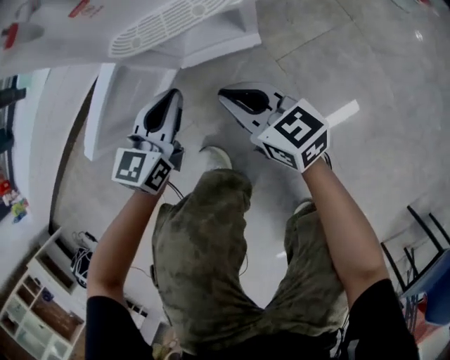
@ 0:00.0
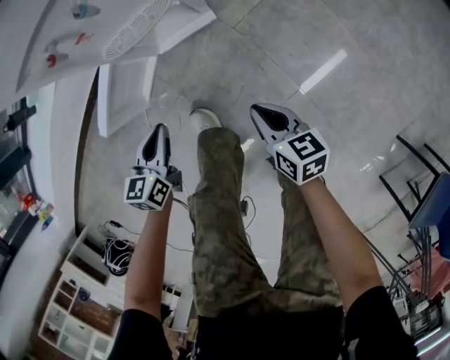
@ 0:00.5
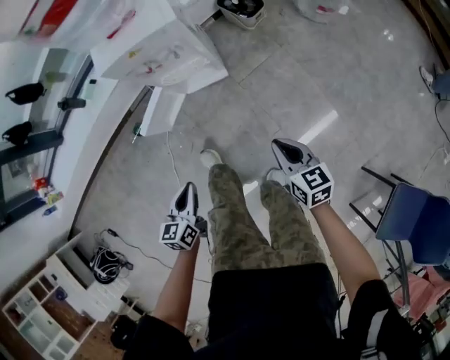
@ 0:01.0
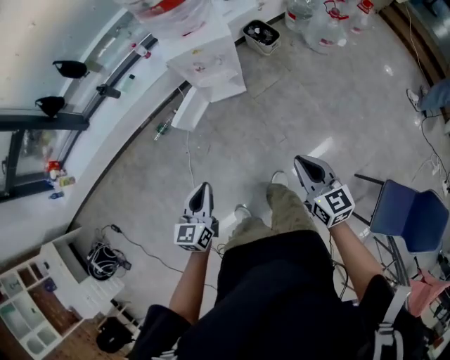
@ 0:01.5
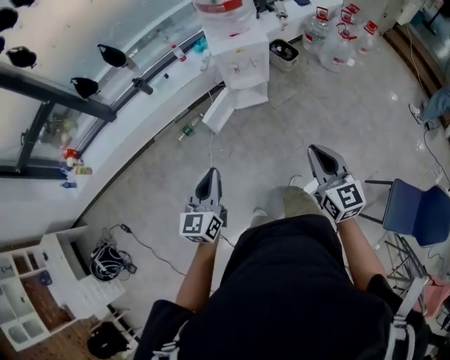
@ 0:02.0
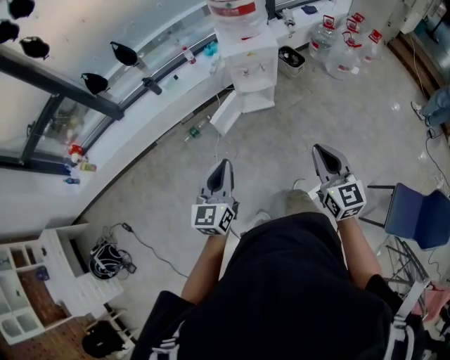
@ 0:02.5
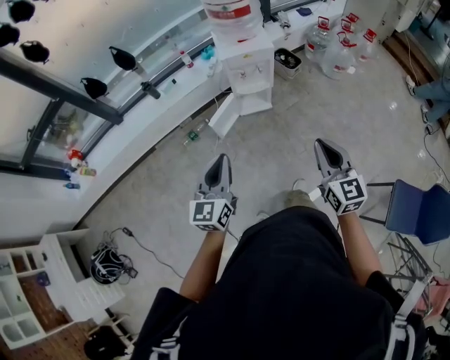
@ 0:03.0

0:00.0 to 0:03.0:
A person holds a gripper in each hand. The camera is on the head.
0:00.0 to 0:01.5: Both grippers are carried backward, approximately 40 cm. Both grippers travel together upward, approximately 60 cm. The right gripper swivels some 30 degrees.
0:01.5 to 0:03.0: The grippers both shift upward, to the left and backward by roughly 20 cm.

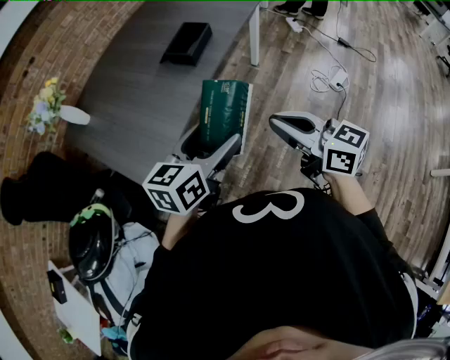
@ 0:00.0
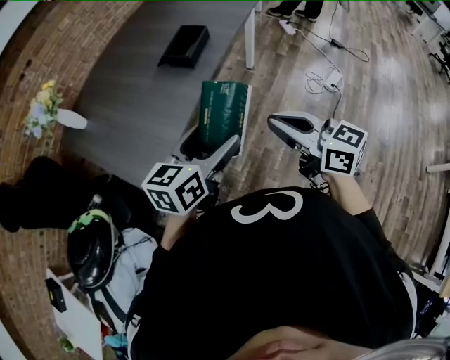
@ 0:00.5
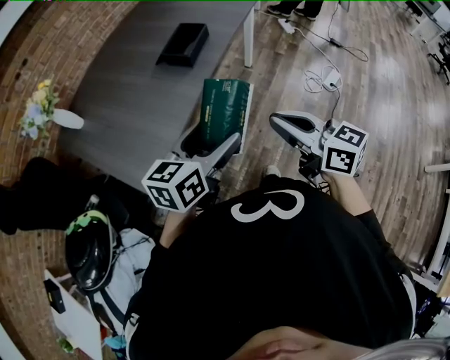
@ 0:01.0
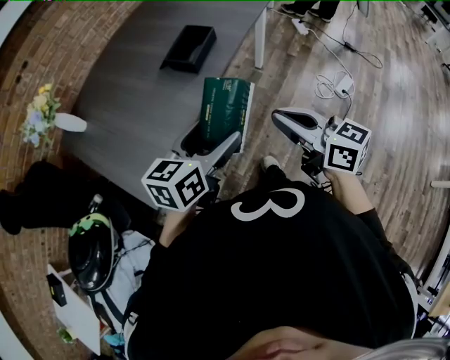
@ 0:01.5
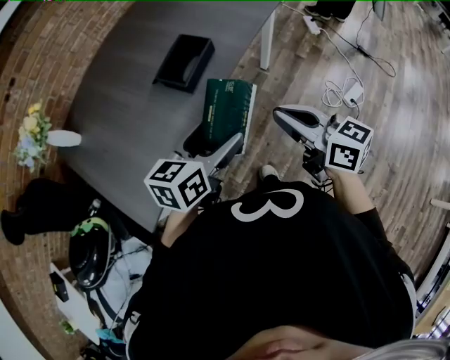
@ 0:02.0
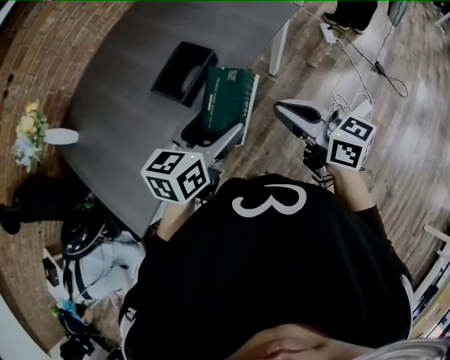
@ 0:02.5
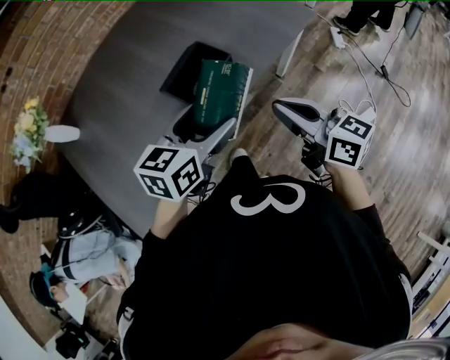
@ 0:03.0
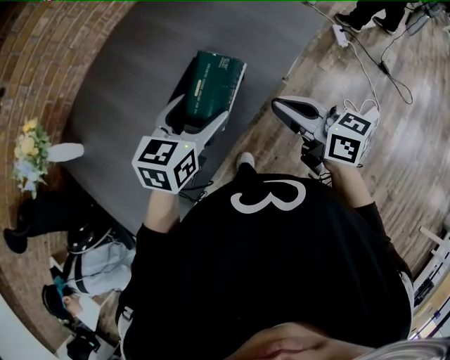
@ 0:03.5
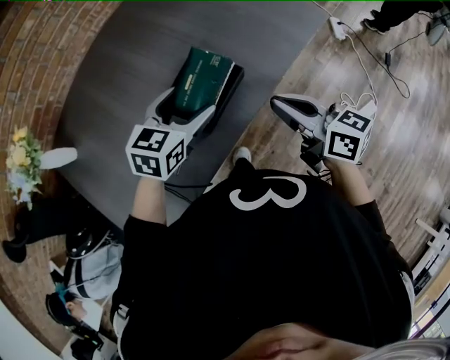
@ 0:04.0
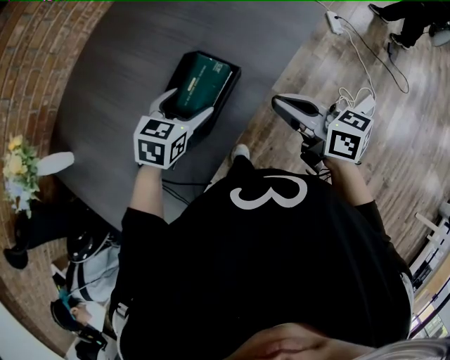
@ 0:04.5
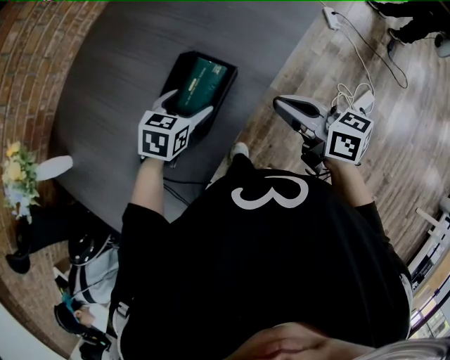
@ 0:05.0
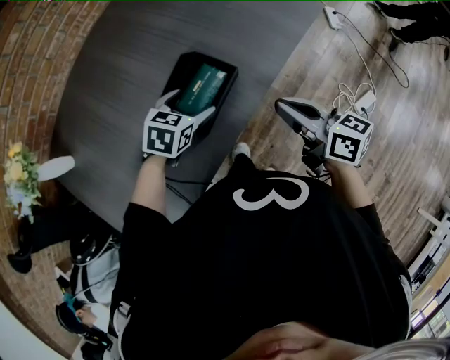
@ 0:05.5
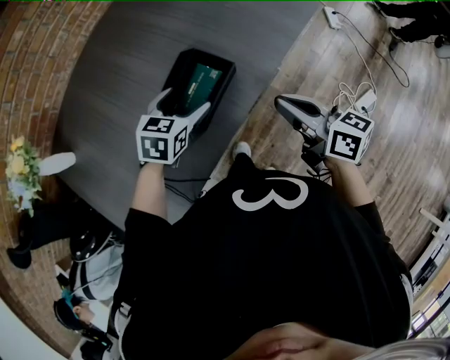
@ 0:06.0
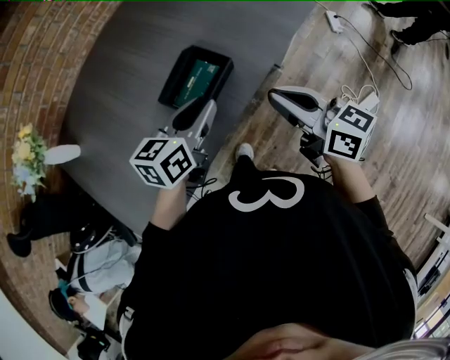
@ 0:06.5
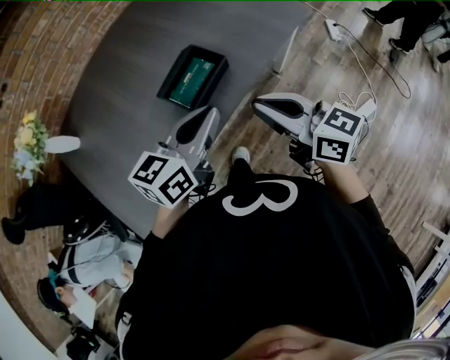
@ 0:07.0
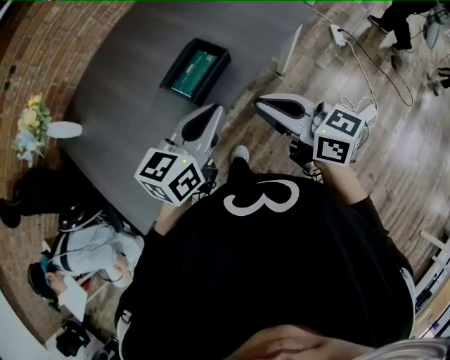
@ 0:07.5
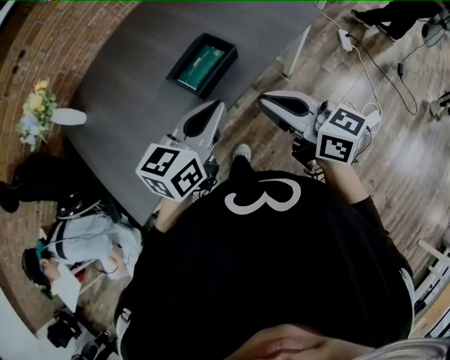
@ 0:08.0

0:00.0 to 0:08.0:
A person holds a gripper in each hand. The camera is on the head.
0:00.0 to 0:02.0: The grippers both shift forward by some 20 cm.
0:02.0 to 0:04.0: Both grippers travel together forward, roughly 25 cm. The left gripper swivels roughly 20 degrees.
0:04.0 to 0:06.0: The left gripper shifts some 5 cm downward.
0:06.0 to 0:08.0: The left gripper shifts about 25 cm backward and upward, turns by approximately 30 degrees, and closes its fingers, while the right gripper goes some 15 cm backward and upward, and changes its angle by roughly 20 degrees.

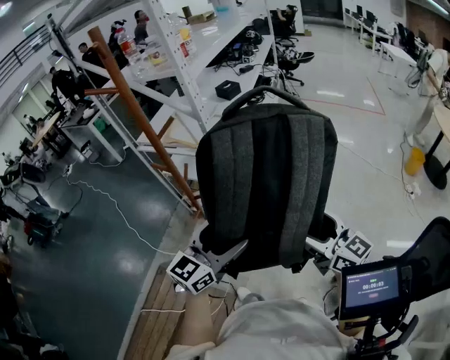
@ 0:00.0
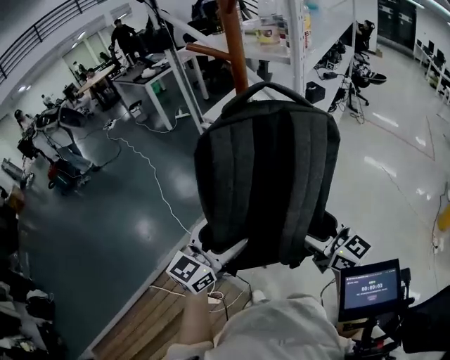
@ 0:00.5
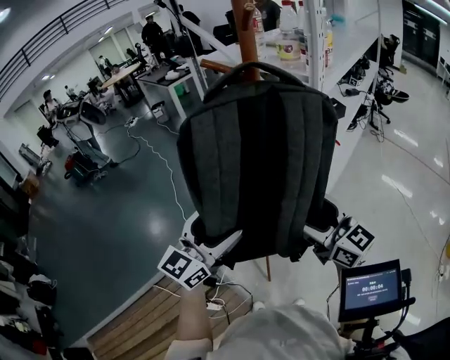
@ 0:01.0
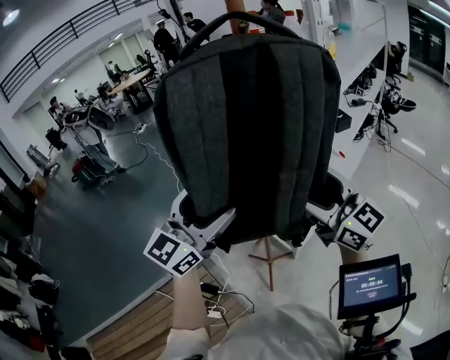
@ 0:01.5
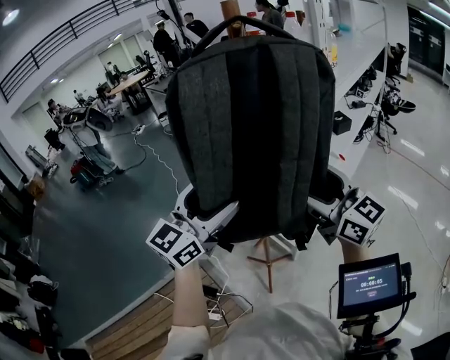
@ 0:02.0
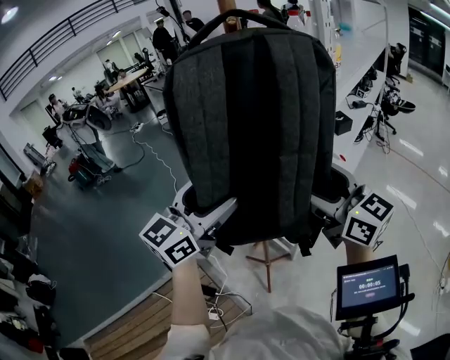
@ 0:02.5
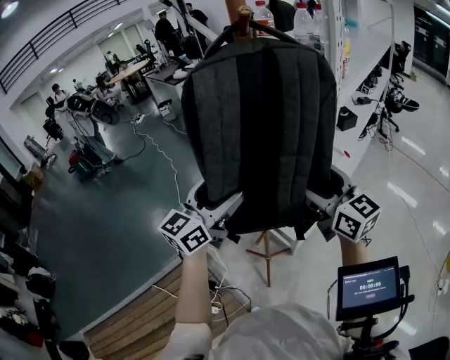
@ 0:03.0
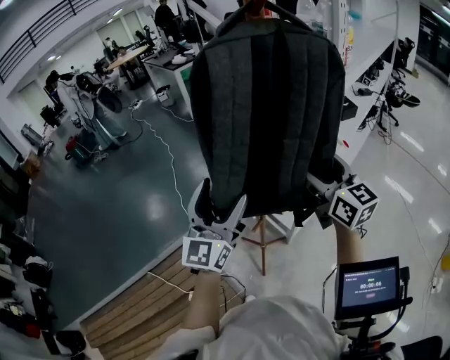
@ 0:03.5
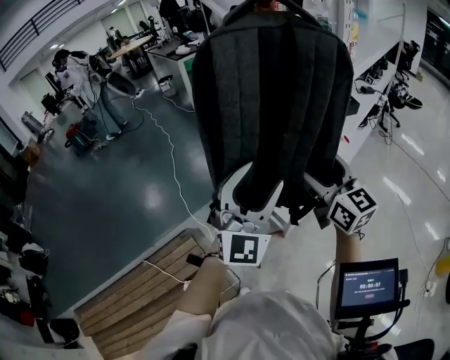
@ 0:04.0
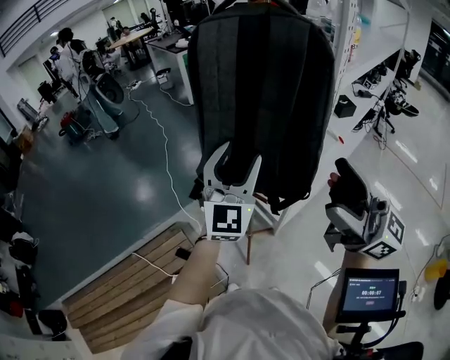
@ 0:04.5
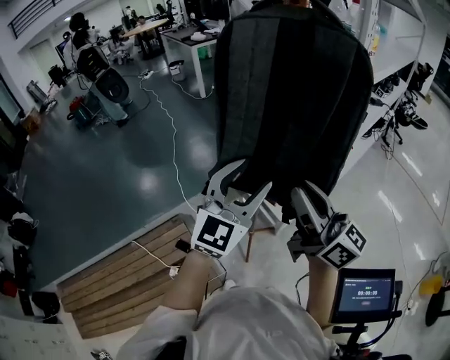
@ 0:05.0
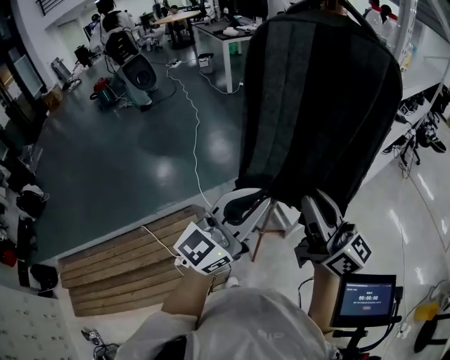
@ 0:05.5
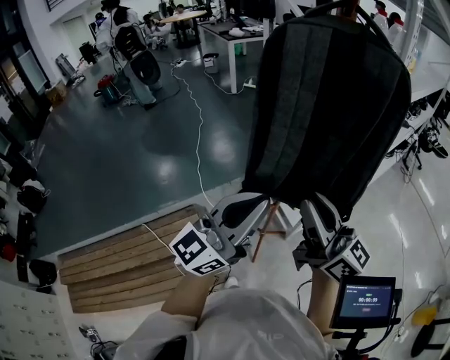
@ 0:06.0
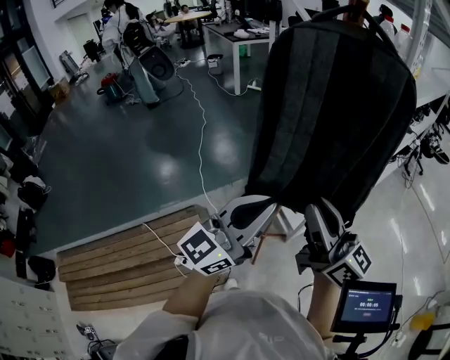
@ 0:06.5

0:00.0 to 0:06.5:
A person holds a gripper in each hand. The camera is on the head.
0:00.0 to 0:02.0: The left gripper ends up approximately 35 cm from where it was, and rotates roughly 30 degrees, while the right gripper ends up approximately 40 cm from where it was, and swivels approximately 30 degrees.
0:02.0 to 0:04.5: The right gripper travels backward by approximately 10 cm, and rotates about 20 degrees. The left gripper shifts roughly 5 cm downward and to the right, turns by roughly 30 degrees, and closes its fingers.
0:04.5 to 0:06.5: The right gripper goes approximately 10 cm to the left and downward, and closes, while the left gripper travels backward by approximately 15 cm, swivels approximately 40 degrees, and closes up.

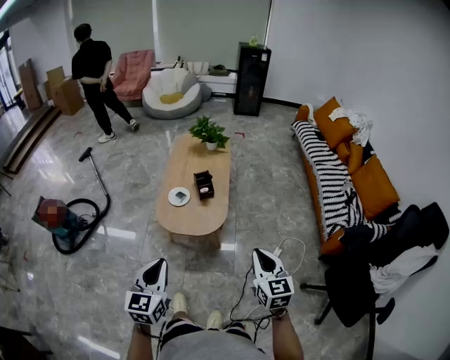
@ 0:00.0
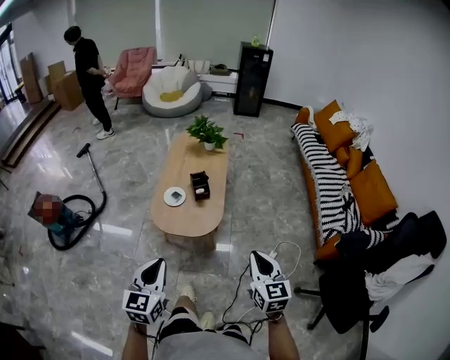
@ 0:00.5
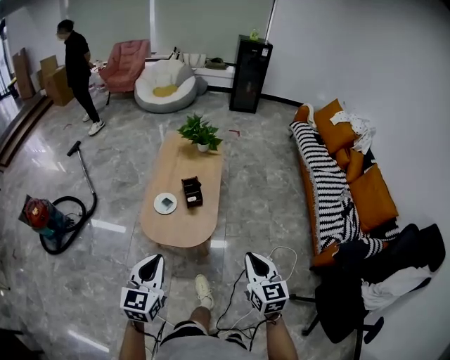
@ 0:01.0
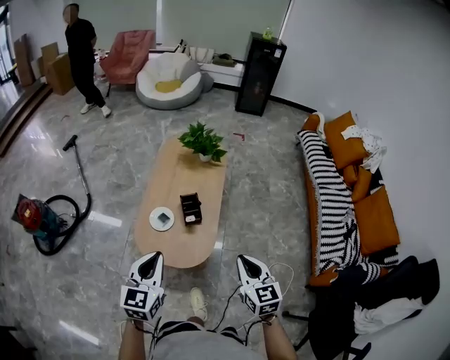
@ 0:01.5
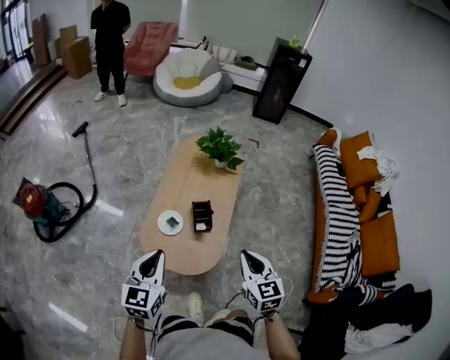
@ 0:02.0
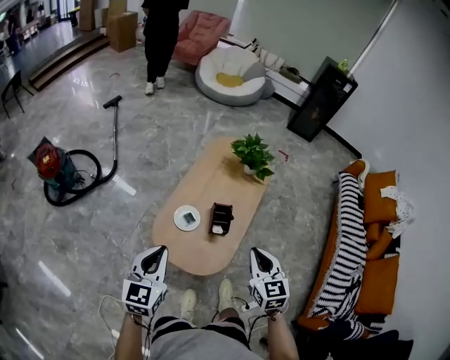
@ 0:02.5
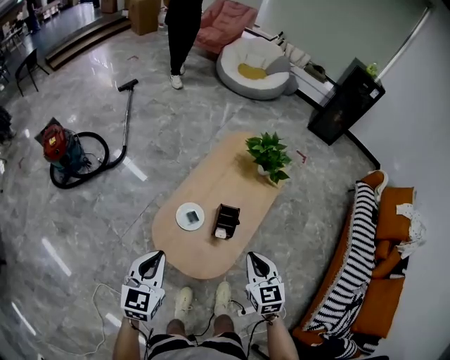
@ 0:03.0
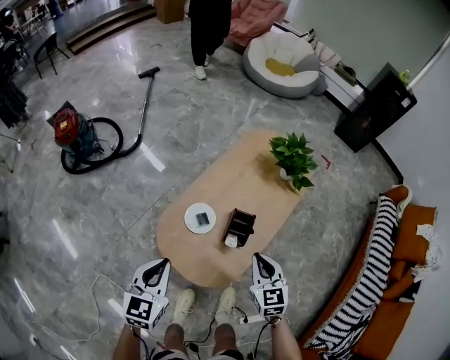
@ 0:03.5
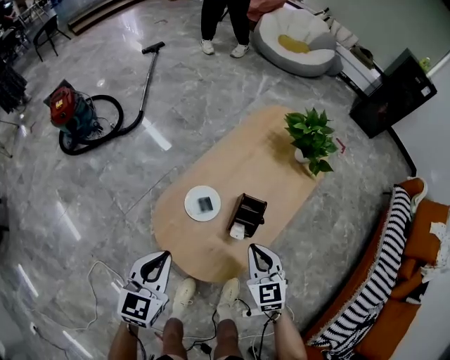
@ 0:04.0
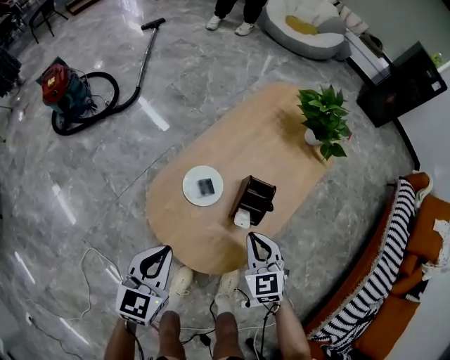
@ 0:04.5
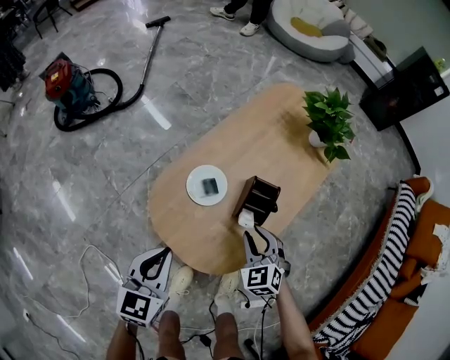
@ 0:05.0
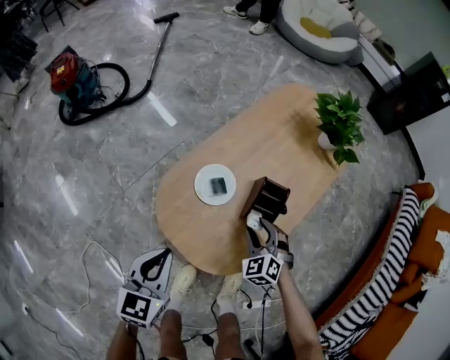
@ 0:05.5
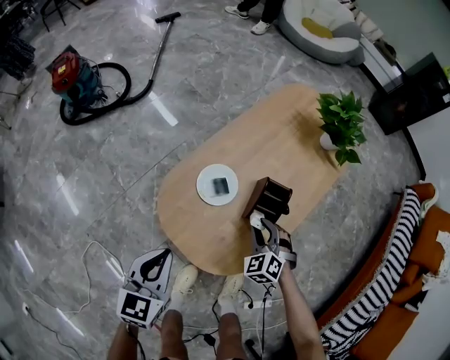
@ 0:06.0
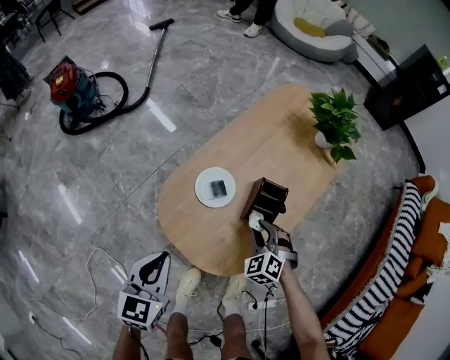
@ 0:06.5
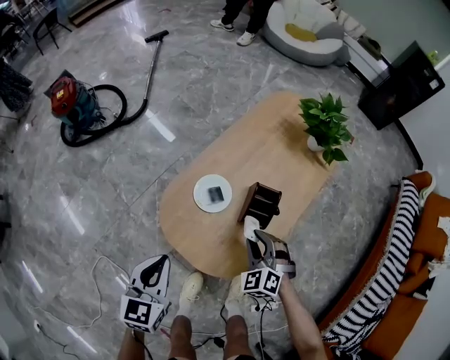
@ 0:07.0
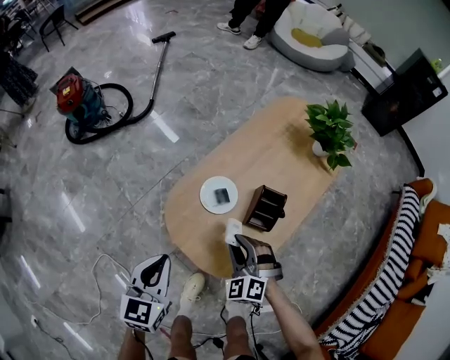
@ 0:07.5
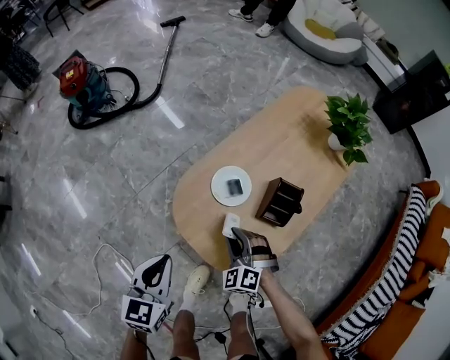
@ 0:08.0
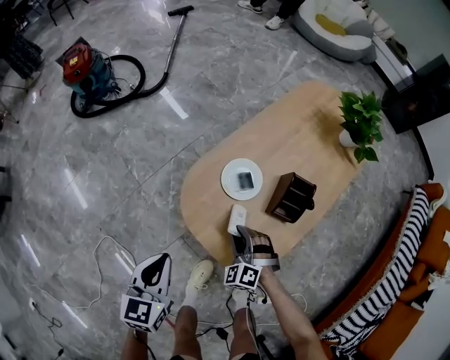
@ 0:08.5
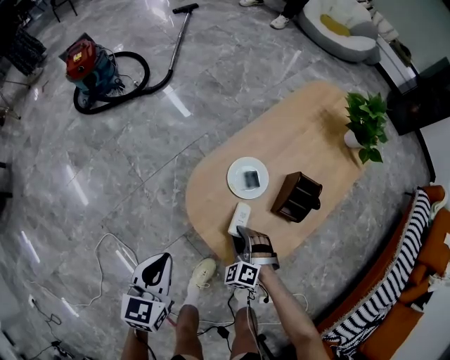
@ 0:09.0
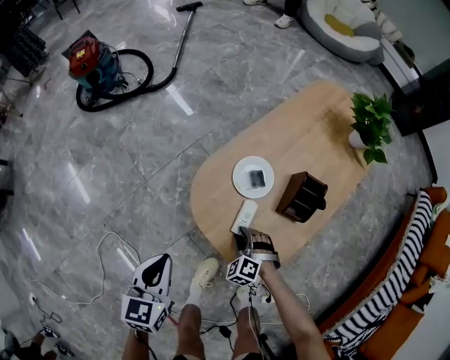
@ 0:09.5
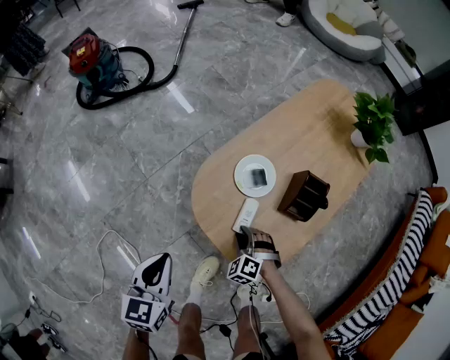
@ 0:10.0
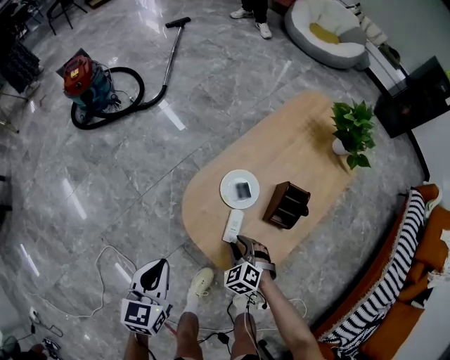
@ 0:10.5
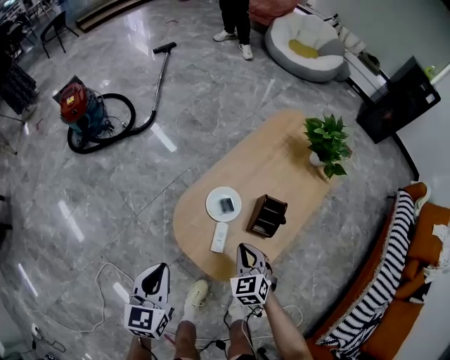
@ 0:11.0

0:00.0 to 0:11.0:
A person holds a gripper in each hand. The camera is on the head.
0:00.0 to 0:02.0: Both grippers move forward, approximately 35 cm.
0:02.0 to 0:03.5: The right gripper goes approximately 25 cm forward and downward, and rotates roughly 20 degrees, while the left gripper moves downward, roughly 15 cm, and rotates about 20 degrees.
0:03.5 to 0:05.5: The right gripper goes roughly 25 cm downward, turns by about 40 degrees, and opens. Meanwhile the left gripper shifts approximately 15 cm downward.
0:05.5 to 0:07.5: The left gripper ends up roughly 5 cm from where it was. The right gripper is displaced to the left and upward by roughly 10 cm.
0:07.5 to 0:09.0: The left gripper heads to the left and downward, covering approximately 10 cm. Meanwhile the right gripper moves downward and to the left, roughly 15 cm.
0:09.0 to 0:11.0: The left gripper goes about 10 cm upward. Meanwhile the right gripper moves upward and to the right, approximately 20 cm, rotates about 40 degrees, and closes up.
